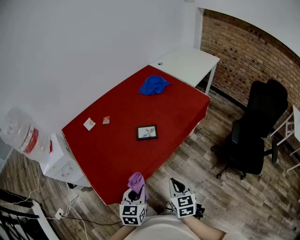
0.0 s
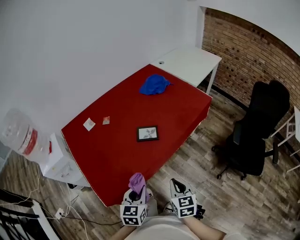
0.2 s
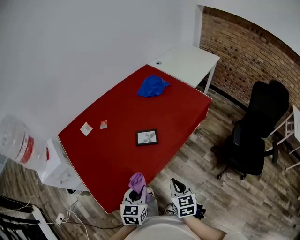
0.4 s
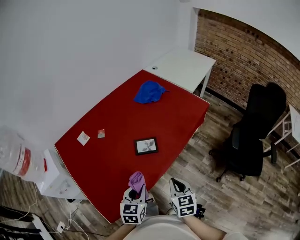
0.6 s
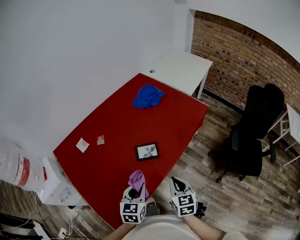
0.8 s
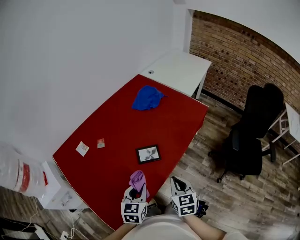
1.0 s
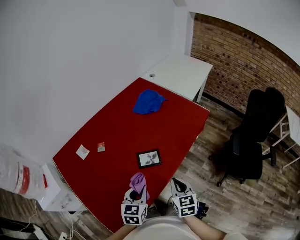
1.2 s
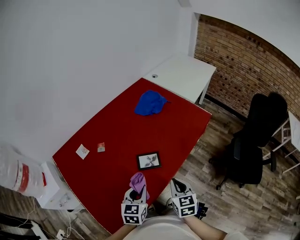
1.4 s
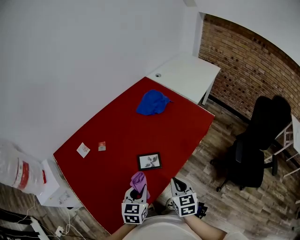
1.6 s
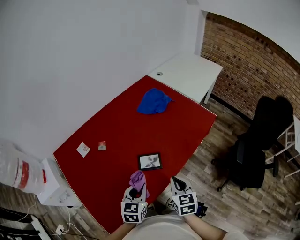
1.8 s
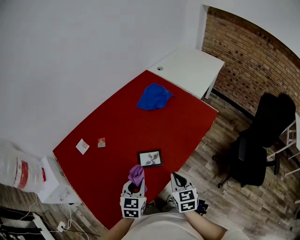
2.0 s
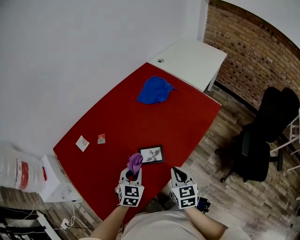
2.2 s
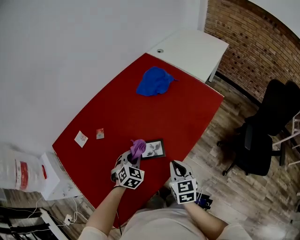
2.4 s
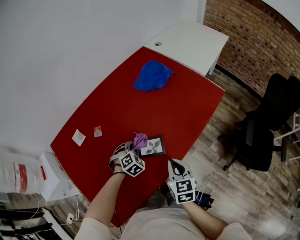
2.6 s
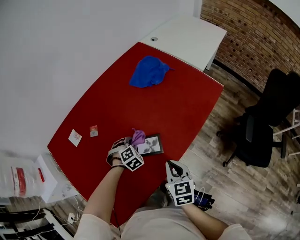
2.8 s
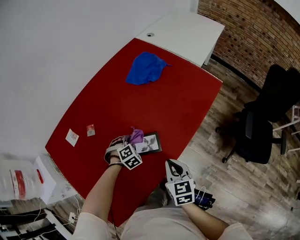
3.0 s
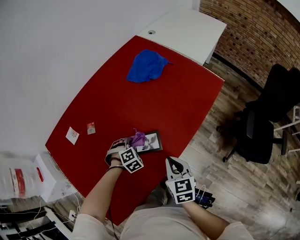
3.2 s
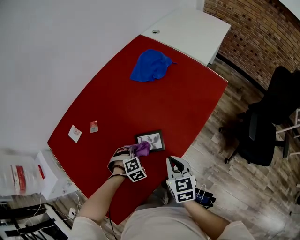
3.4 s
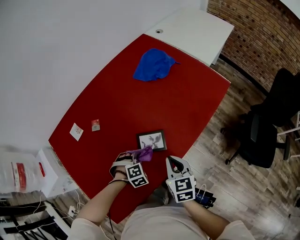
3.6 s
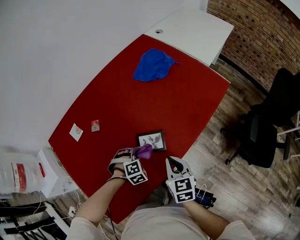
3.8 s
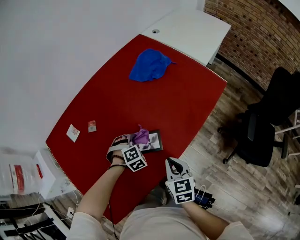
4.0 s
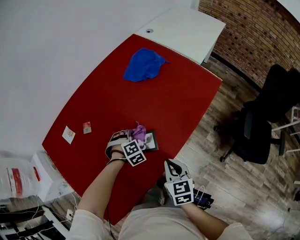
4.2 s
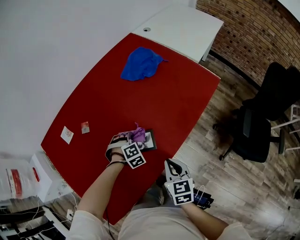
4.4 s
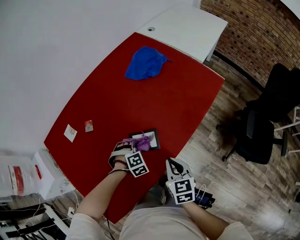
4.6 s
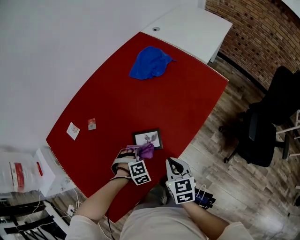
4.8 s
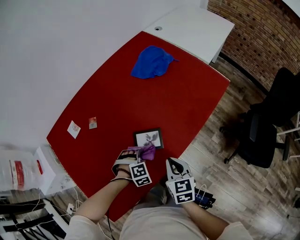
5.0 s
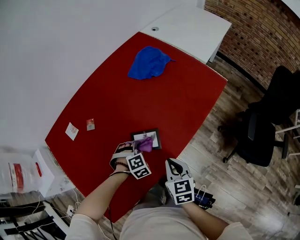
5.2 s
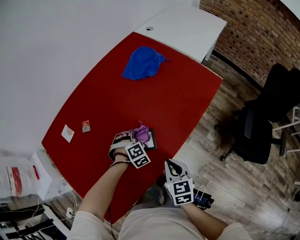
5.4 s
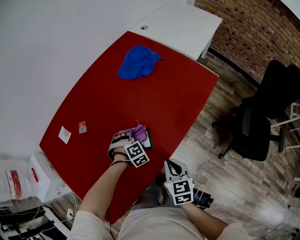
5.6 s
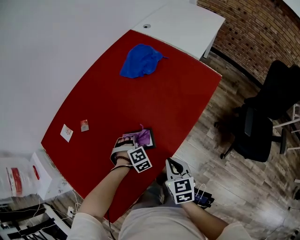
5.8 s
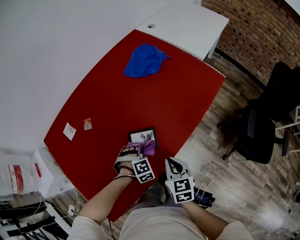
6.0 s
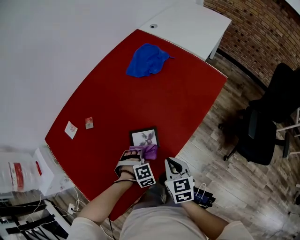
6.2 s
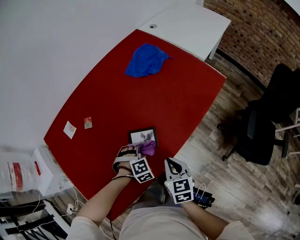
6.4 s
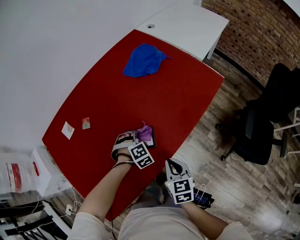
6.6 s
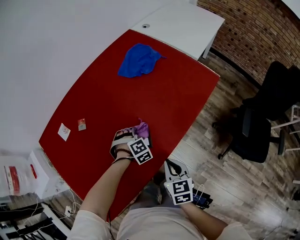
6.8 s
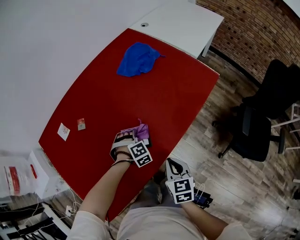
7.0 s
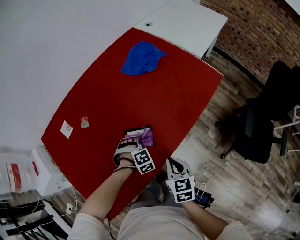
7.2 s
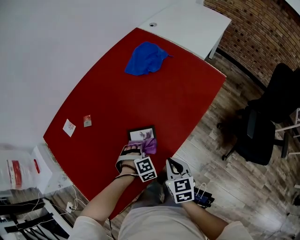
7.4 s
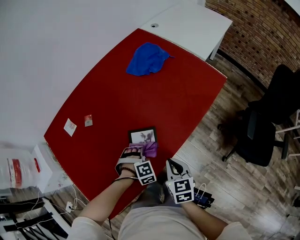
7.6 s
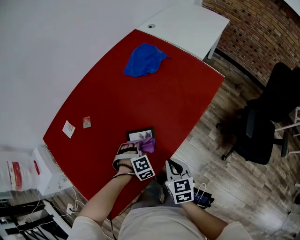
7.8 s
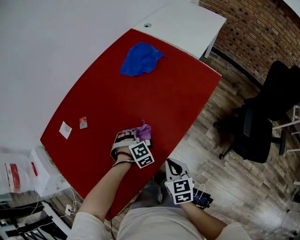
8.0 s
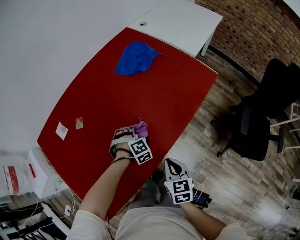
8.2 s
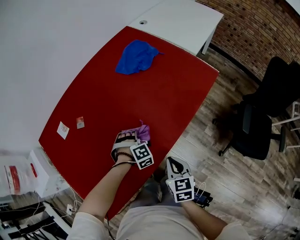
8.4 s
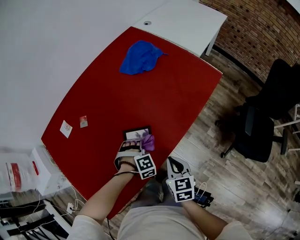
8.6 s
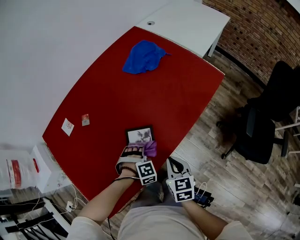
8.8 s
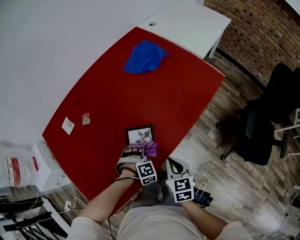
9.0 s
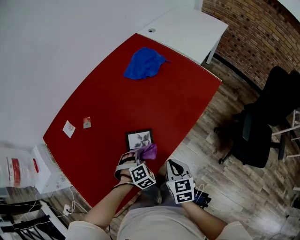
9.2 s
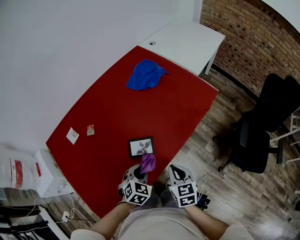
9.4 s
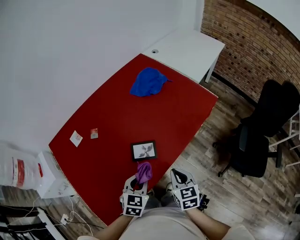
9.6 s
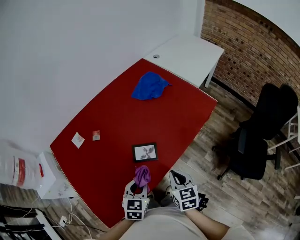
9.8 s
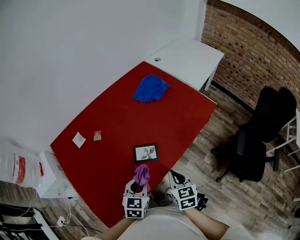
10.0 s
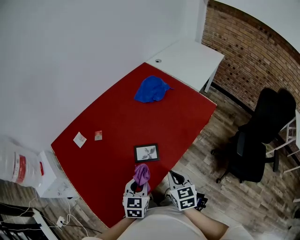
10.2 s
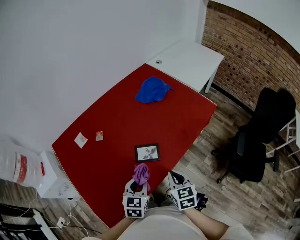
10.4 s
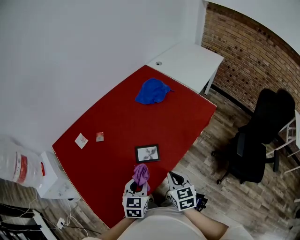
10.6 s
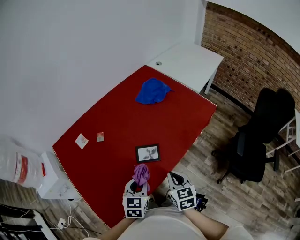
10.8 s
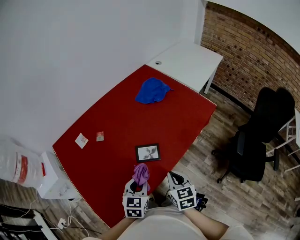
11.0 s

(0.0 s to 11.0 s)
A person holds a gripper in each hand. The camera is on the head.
0.0 s - 1.6 s: The grippers both shift forward by roughly 20 cm.
1.6 s - 3.2 s: The left gripper travels downward and forward by about 30 cm, and rotates around the line of its fingers by roughly 60 degrees, clockwise from behind; the right gripper moves forward and downward, approximately 10 cm.
3.2 s - 4.8 s: The left gripper goes forward and backward, some 10 cm each way, reversing 2 times.
4.8 s - 6.2 s: The left gripper moves about 10 cm forward and comes back.
6.2 s - 7.8 s: The left gripper moves about 10 cm forward and comes back.
7.8 s - 9.4 s: The left gripper moves backward and upward, approximately 10 cm, and rolls counterclockwise, seen from behind, by roughly 40 degrees.
9.4 s - 11.0 s: The left gripper moves upward and to the left, approximately 10 cm, and swivels about 30 degrees. The right gripper shifts approximately 5 cm upward.

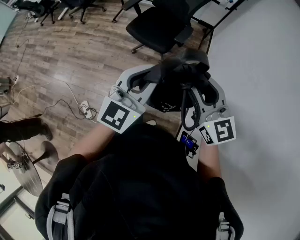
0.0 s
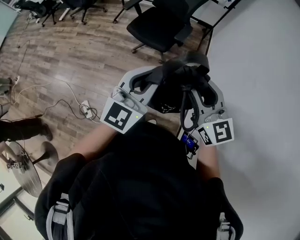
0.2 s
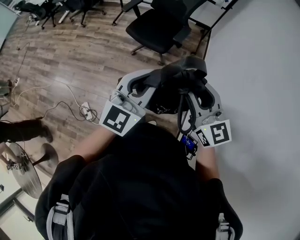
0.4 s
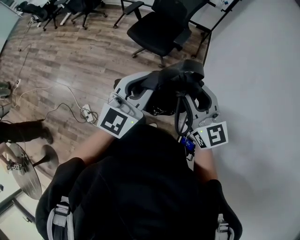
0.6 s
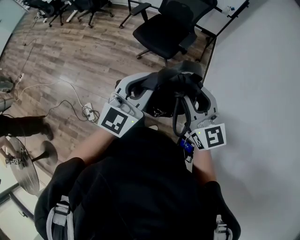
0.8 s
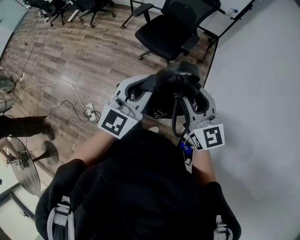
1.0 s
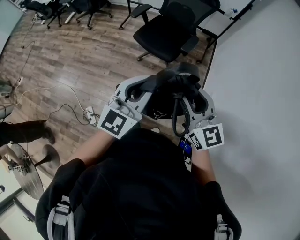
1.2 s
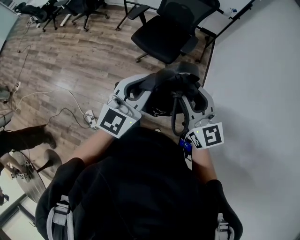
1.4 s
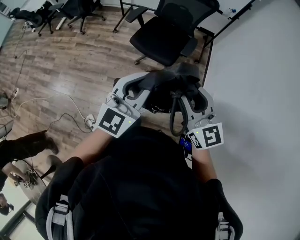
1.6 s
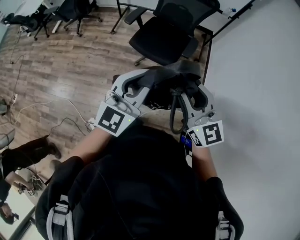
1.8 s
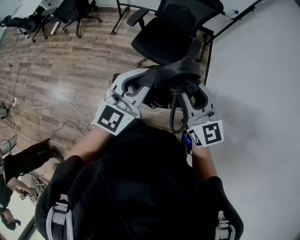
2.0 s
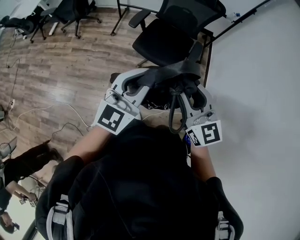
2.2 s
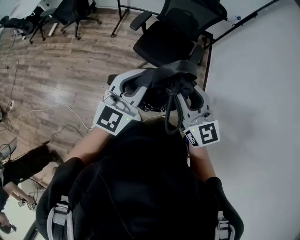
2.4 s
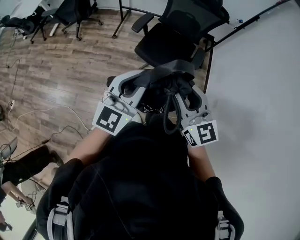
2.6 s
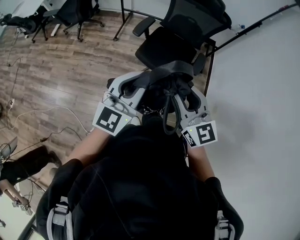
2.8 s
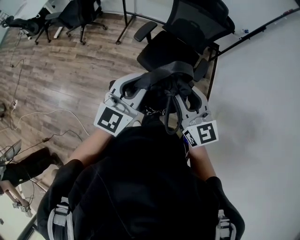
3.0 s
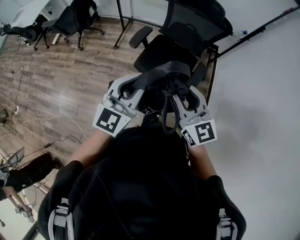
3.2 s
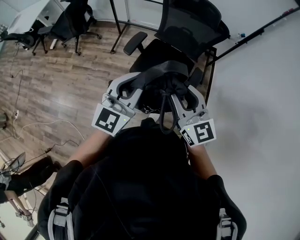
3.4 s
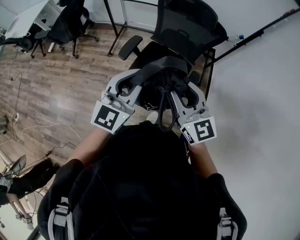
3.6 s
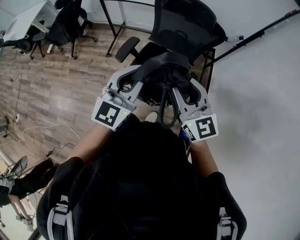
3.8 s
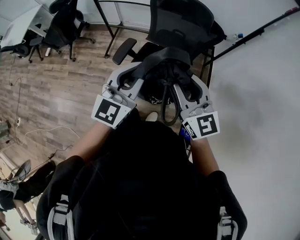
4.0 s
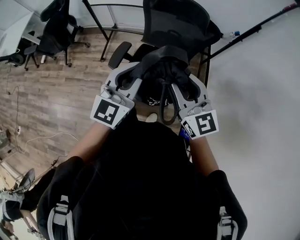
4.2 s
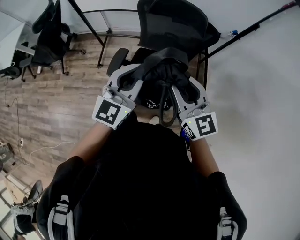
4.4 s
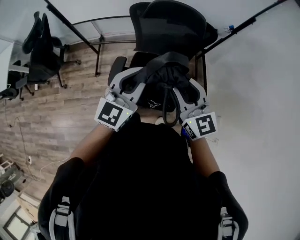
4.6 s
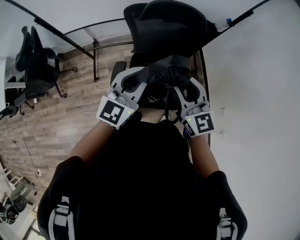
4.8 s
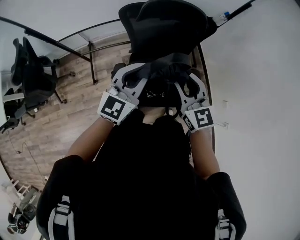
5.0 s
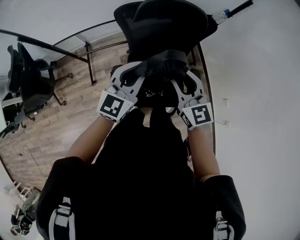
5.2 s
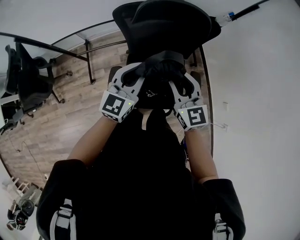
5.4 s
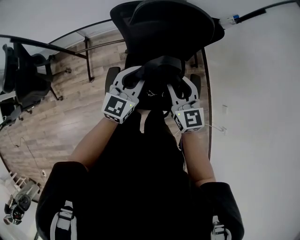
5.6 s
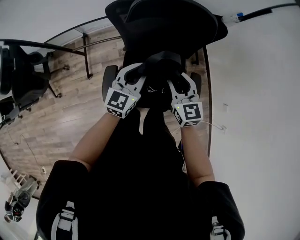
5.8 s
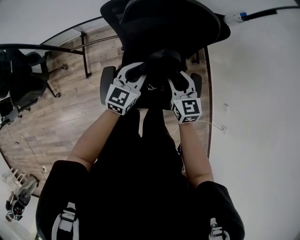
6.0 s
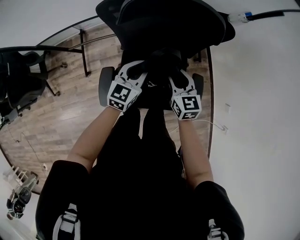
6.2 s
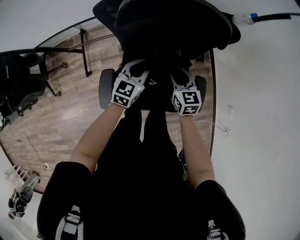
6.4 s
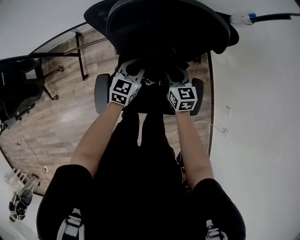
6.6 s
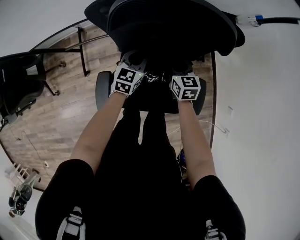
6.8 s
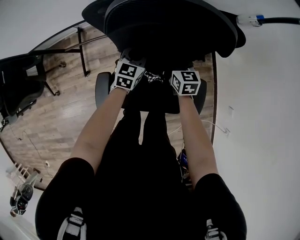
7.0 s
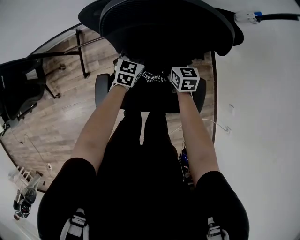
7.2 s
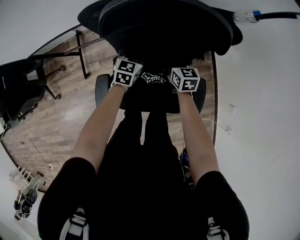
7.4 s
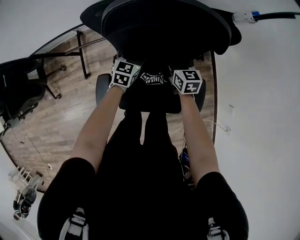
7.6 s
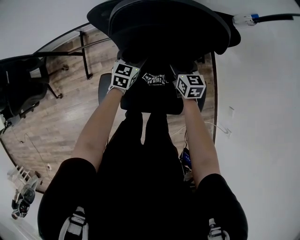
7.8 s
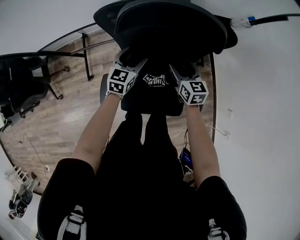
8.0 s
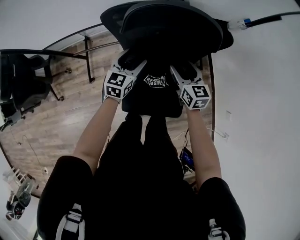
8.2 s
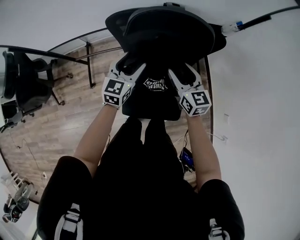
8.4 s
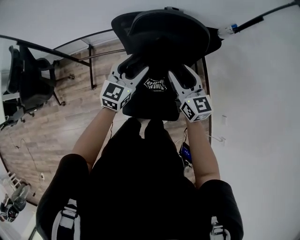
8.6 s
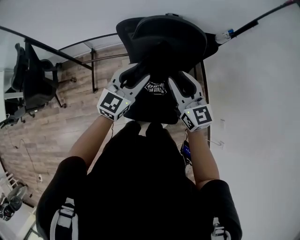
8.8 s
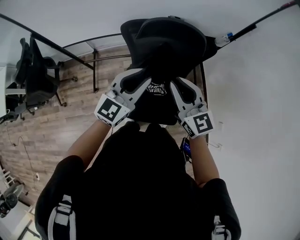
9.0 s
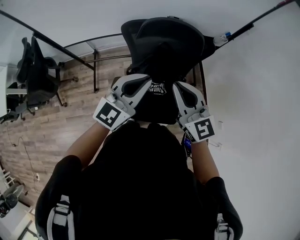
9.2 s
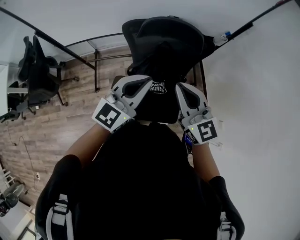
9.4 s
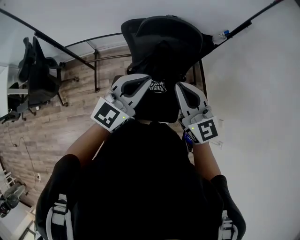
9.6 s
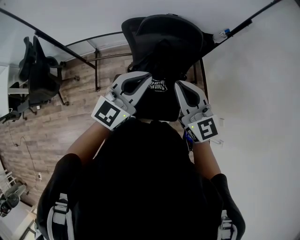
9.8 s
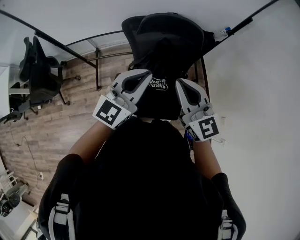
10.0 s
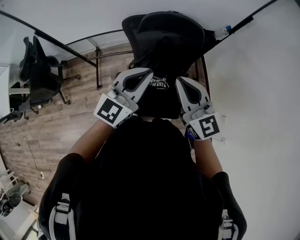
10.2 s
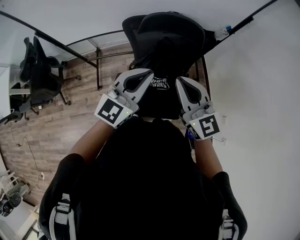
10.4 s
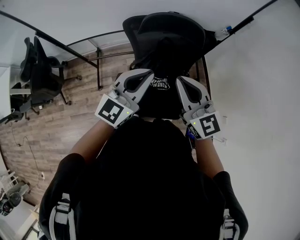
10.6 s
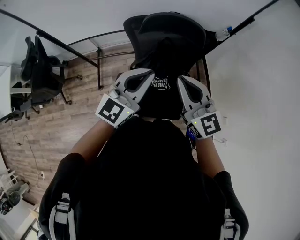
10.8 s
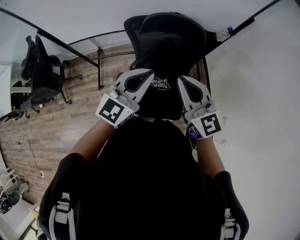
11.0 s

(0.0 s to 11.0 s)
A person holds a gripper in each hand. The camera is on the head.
0.0 s - 1.6 s: Both grippers travel together to the left and forward, about 15 cm.
1.6 s - 3.2 s: The two grippers go about 30 cm forward and to the left.
3.2 s - 4.8 s: The left gripper ends up approximately 40 cm from where it was, and rotates roughly 30 degrees; the right gripper moves about 40 cm, and turns by about 30 degrees.
4.8 s - 6.2 s: Both grippers move downward and forward, about 30 cm. The right gripper changes its angle by some 30 degrees.
6.2 s - 7.8 s: Both grippers move downward and forward, roughly 15 cm. The right gripper opens its fingers, while the left gripper opens up.
7.8 s - 9.4 s: The two grippers go roughly 50 cm upward and backward. The right gripper turns by some 40 degrees, and closes, while the left gripper tips its fingers upward by some 30 degrees, and closes up.
9.4 s - 11.0 s: Neither gripper changes place.

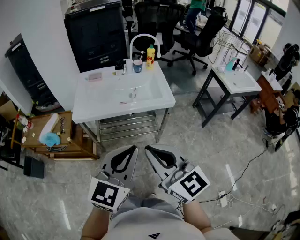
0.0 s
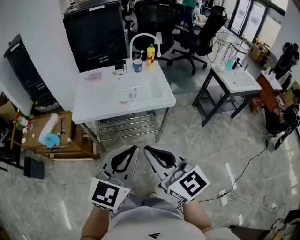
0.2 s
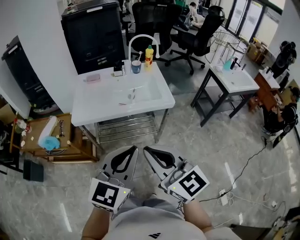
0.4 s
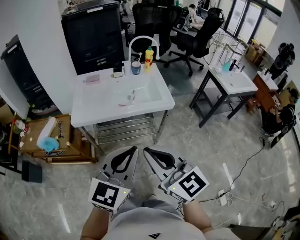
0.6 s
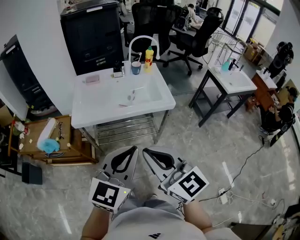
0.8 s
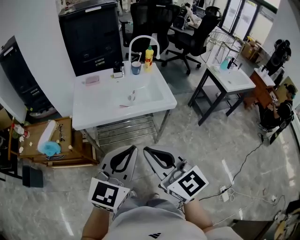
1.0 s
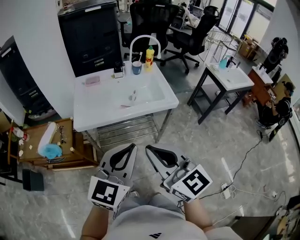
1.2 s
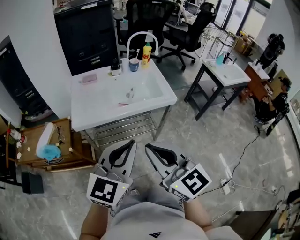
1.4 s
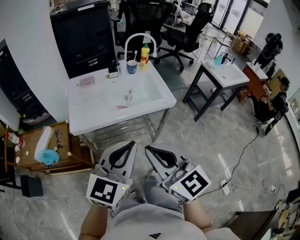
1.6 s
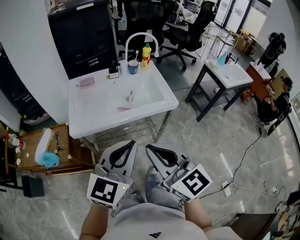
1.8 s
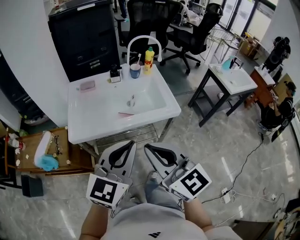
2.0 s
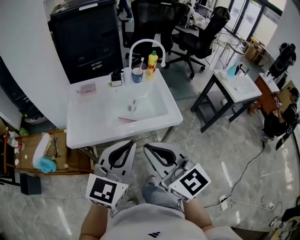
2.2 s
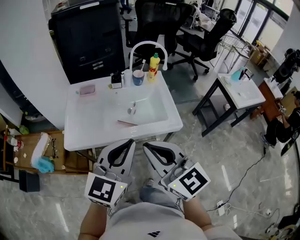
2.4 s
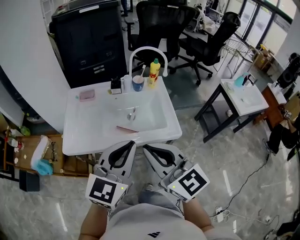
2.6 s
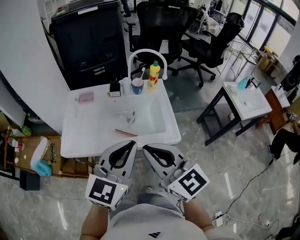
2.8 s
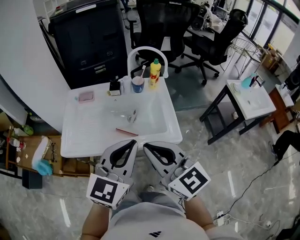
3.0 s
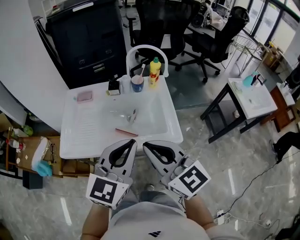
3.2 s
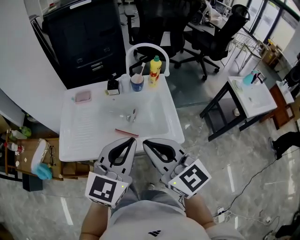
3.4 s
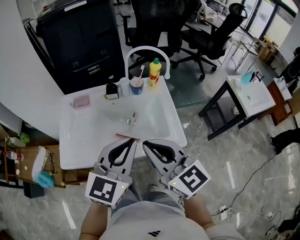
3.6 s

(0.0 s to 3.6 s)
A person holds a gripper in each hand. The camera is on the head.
0.0 s - 1.8 s: The two grippers go some 10 cm forward and to the left.
1.8 s - 3.6 s: The two grippers go some 25 cm forward.
